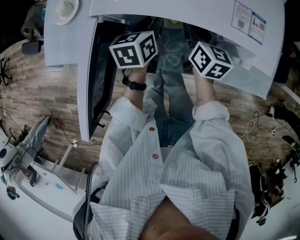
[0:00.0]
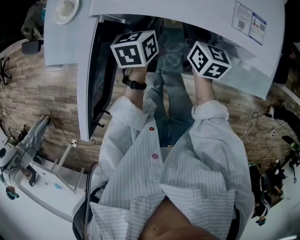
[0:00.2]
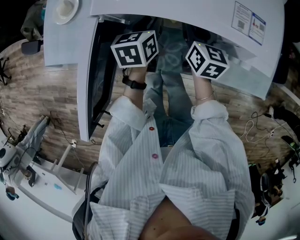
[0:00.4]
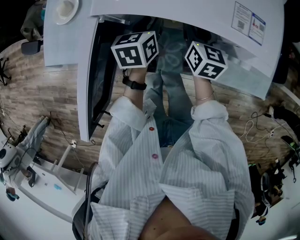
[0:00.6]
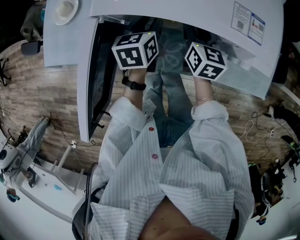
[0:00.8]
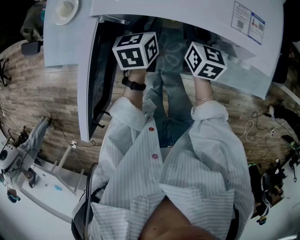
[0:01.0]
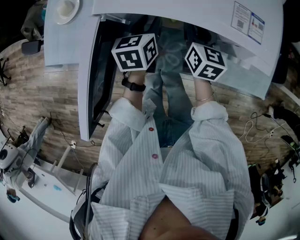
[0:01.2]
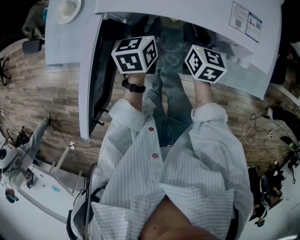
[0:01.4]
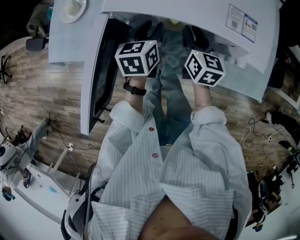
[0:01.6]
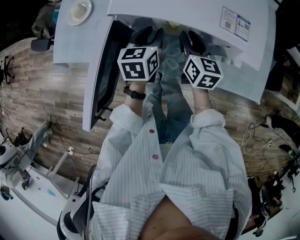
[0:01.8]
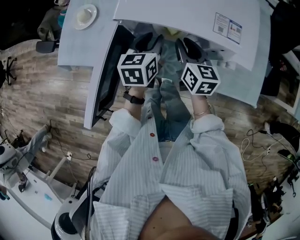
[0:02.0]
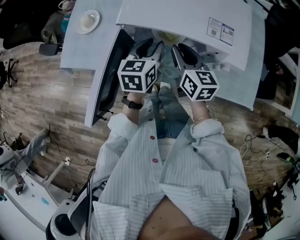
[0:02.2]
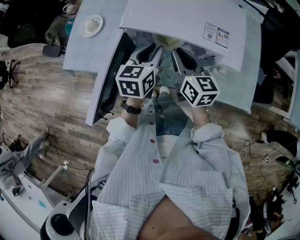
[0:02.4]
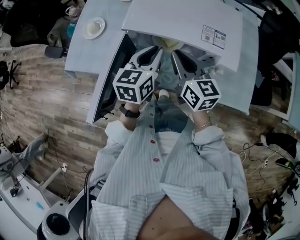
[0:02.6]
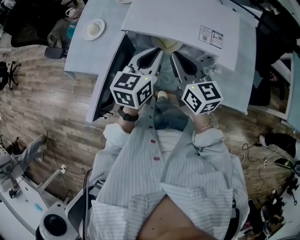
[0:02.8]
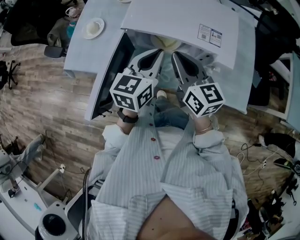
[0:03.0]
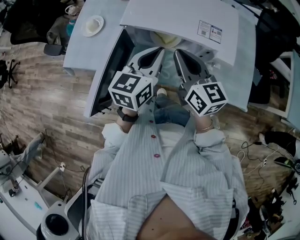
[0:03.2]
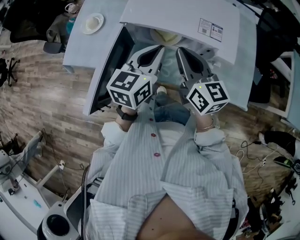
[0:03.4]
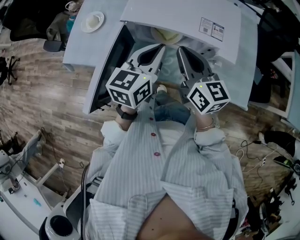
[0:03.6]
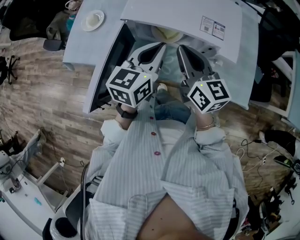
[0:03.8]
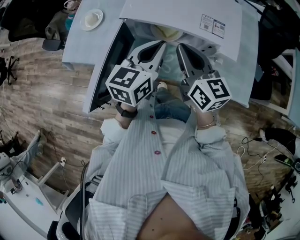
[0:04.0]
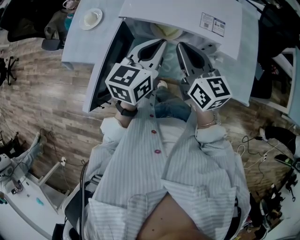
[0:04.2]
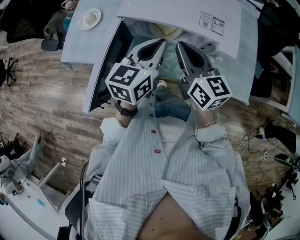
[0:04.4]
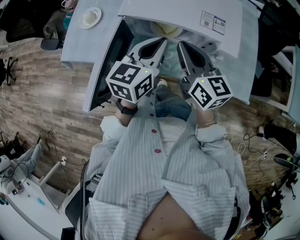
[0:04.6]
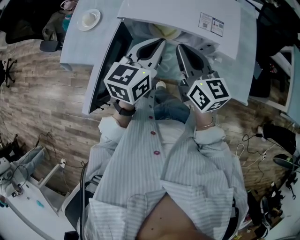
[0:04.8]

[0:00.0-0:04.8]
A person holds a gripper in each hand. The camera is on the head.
0:00.0 to 0:01.6: The grippers stay close to where they were, moving slightly.
0:01.6 to 0:03.2: Both grippers move upward and backward, some 20 cm. The left gripper rotates some 20 degrees, and closes. Meanwhile the right gripper changes its angle by approximately 30 degrees, and closes its fingers.
0:03.2 to 0:04.8: The two grippers keep their place.

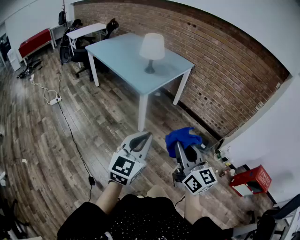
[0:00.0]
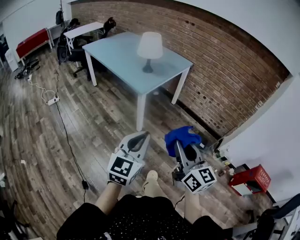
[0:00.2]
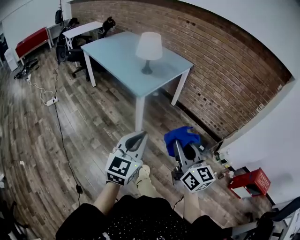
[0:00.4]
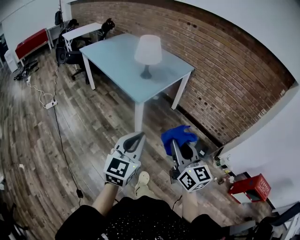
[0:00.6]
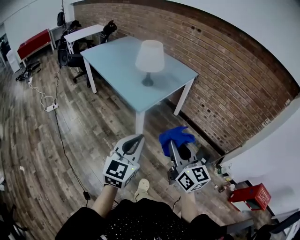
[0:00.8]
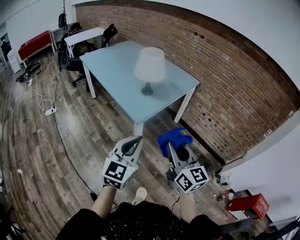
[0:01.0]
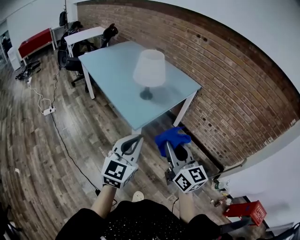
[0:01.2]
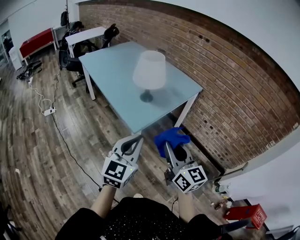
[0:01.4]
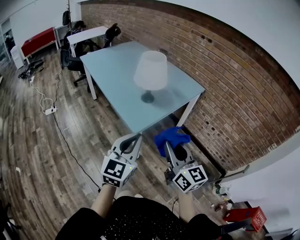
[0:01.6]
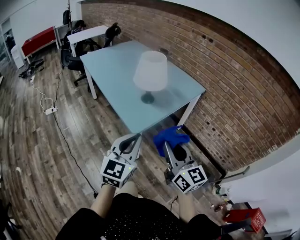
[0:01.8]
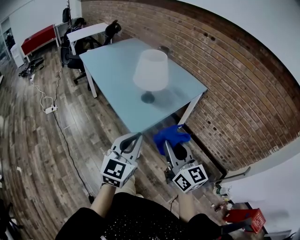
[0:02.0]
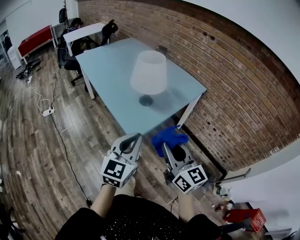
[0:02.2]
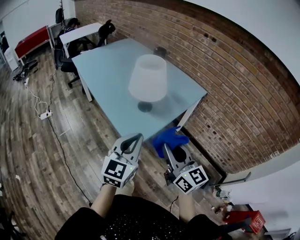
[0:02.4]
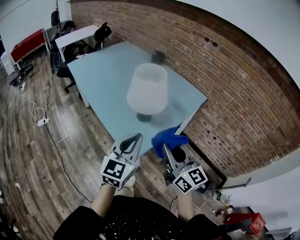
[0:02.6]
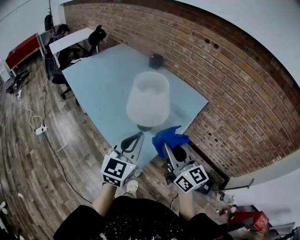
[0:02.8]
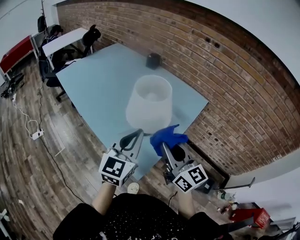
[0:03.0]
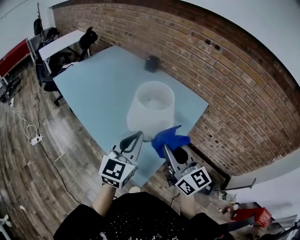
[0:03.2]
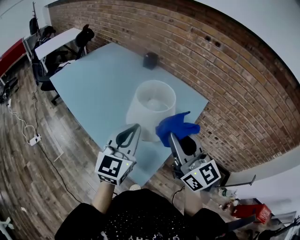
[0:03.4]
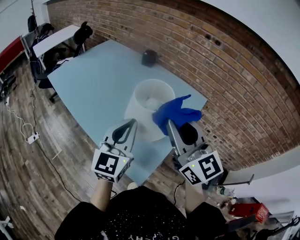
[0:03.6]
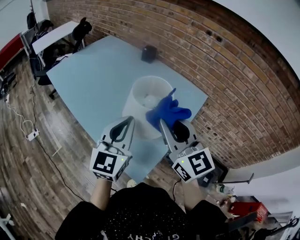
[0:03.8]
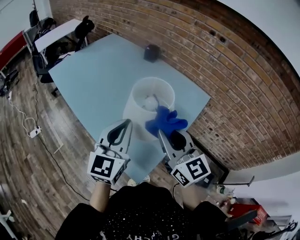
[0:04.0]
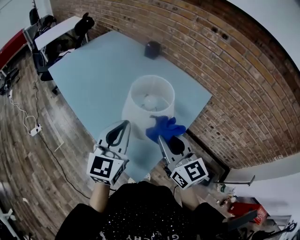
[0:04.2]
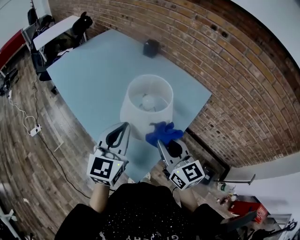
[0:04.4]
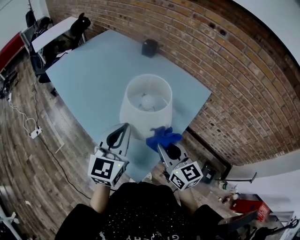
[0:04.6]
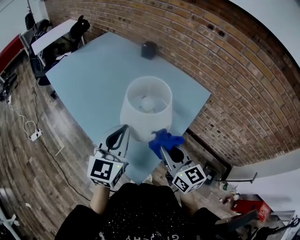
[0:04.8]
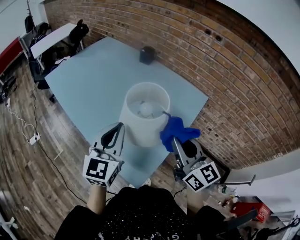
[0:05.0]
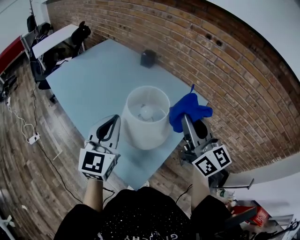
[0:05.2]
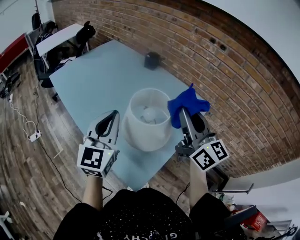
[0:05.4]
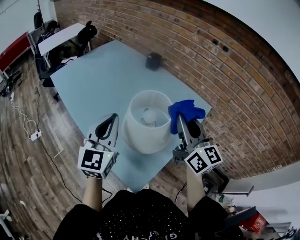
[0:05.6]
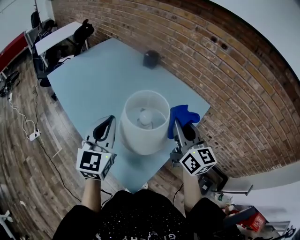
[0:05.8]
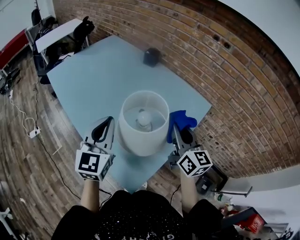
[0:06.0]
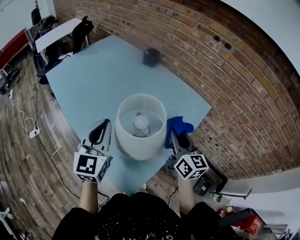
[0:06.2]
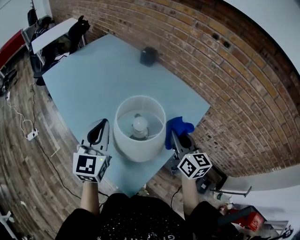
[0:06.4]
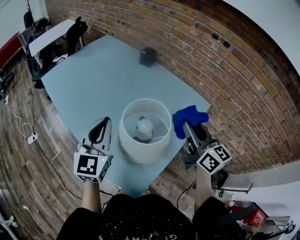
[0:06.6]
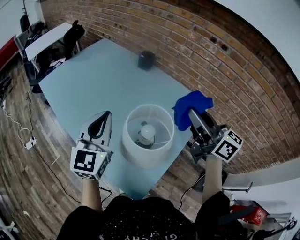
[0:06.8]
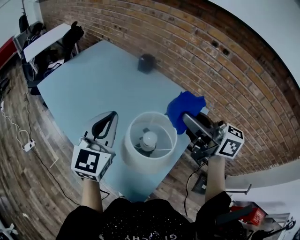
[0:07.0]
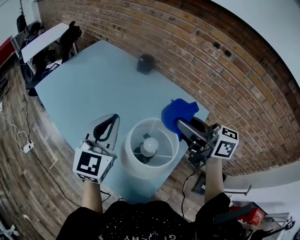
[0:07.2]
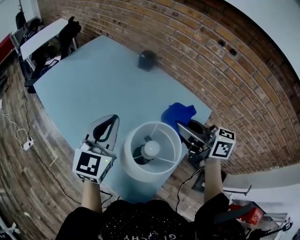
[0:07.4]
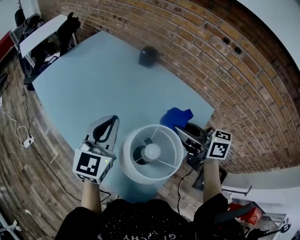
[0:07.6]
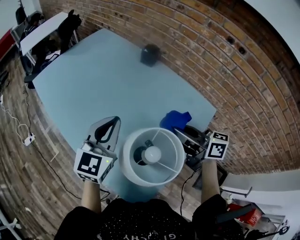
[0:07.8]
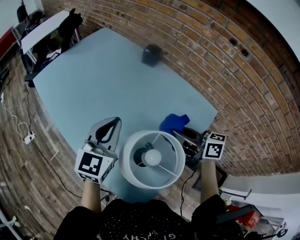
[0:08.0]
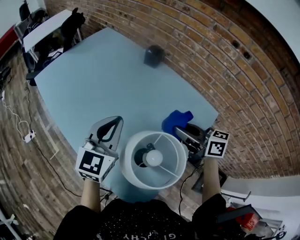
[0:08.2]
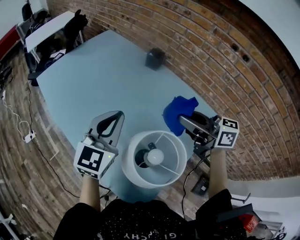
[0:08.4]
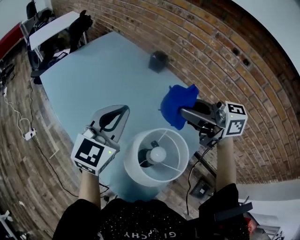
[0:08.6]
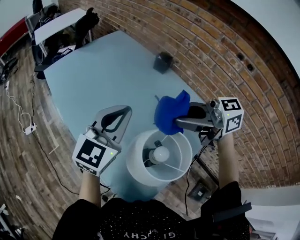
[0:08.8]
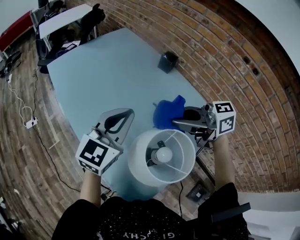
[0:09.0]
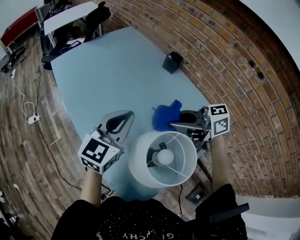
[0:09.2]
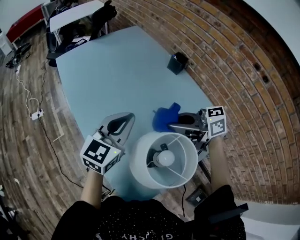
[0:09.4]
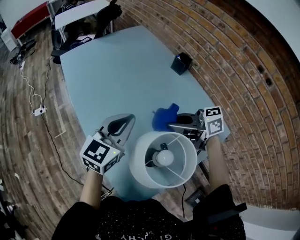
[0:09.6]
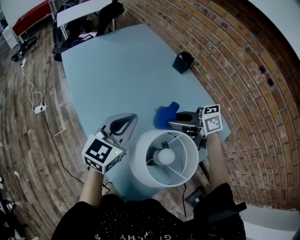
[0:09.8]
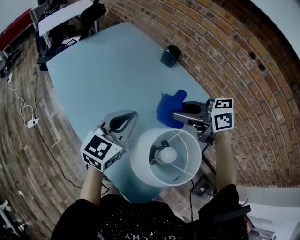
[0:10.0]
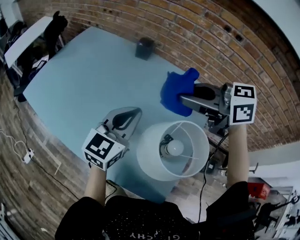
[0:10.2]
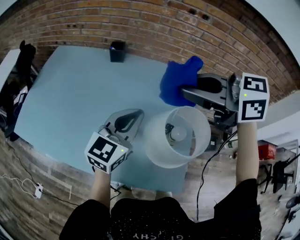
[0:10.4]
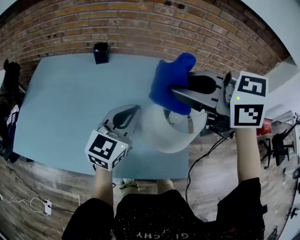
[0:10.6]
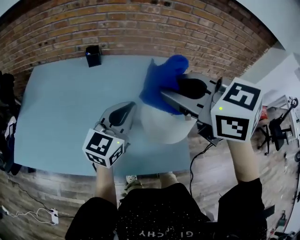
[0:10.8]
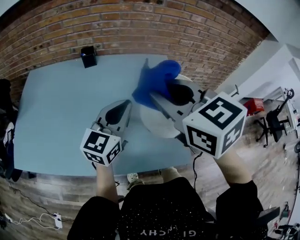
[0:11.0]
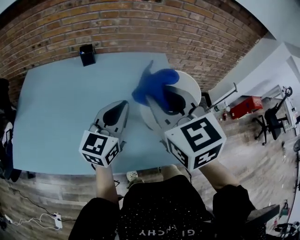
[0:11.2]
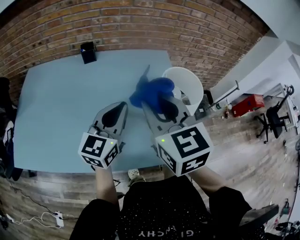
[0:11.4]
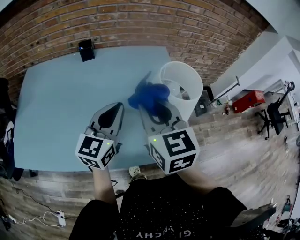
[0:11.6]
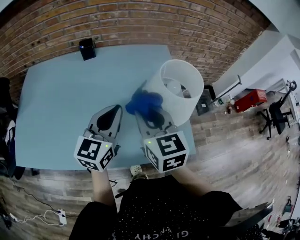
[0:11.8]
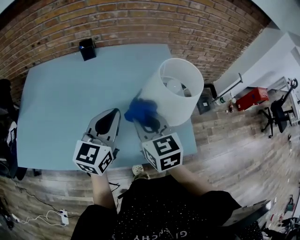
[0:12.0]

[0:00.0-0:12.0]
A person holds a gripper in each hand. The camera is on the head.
0:00.0 to 0:01.6: The grippers both shift forward by roughly 35 cm.
0:01.6 to 0:03.0: The grippers both shift forward by approximately 30 cm.
0:03.0 to 0:04.4: Both grippers move forward, roughly 5 cm. The right gripper moves about 10 cm upward and comes back.
0:04.4 to 0:06.0: The right gripper heads forward and to the right, covering roughly 15 cm, and goes upward and returns, some 15 cm each way. Meanwhile the left gripper goes some 5 cm forward.
0:06.0 to 0:07.6: The right gripper moves up and down over roughly 20 cm, changing direction 2 times, and changes its angle by approximately 40 degrees; the left gripper travels forward by about 15 cm.
0:07.6 to 0:09.0: The right gripper moves up and down over roughly 15 cm, changing direction 2 times, and changes its angle by approximately 40 degrees.
0:09.0 to 0:10.4: The right gripper travels upward by about 10 cm, and rotates about 50 degrees, while the left gripper turns by roughly 40 degrees.
0:10.4 to 0:12.0: The right gripper moves downward, about 20 cm, and changes its angle by approximately 60 degrees; the left gripper changes place by roughly 10 cm.

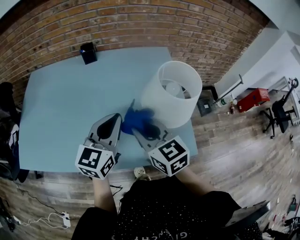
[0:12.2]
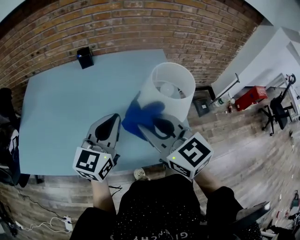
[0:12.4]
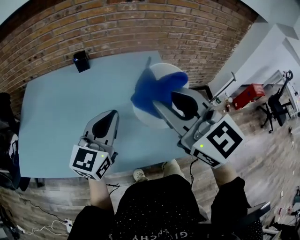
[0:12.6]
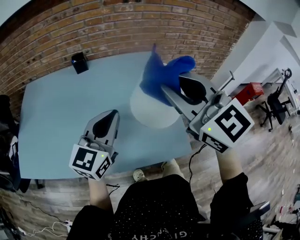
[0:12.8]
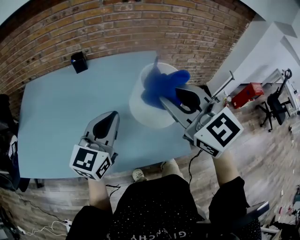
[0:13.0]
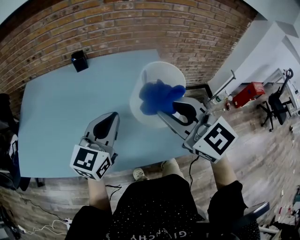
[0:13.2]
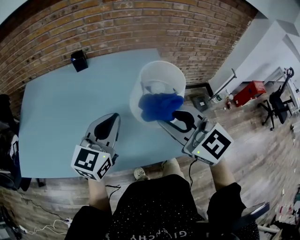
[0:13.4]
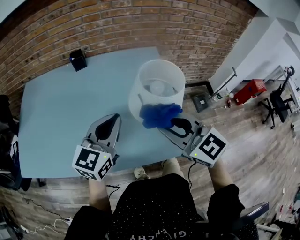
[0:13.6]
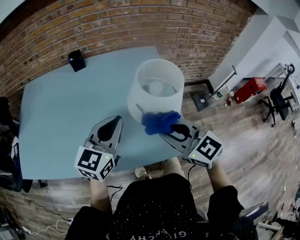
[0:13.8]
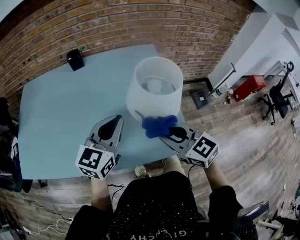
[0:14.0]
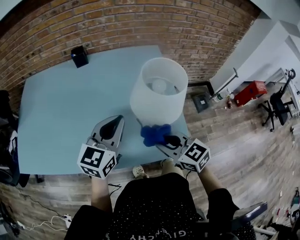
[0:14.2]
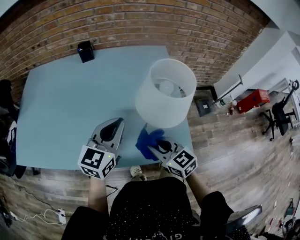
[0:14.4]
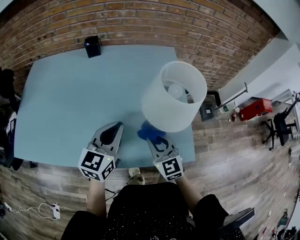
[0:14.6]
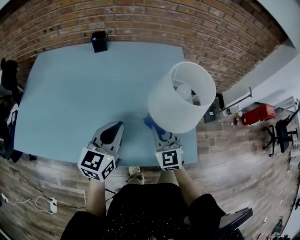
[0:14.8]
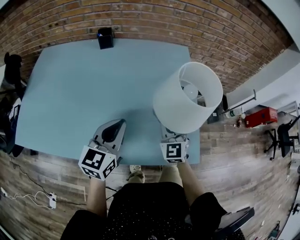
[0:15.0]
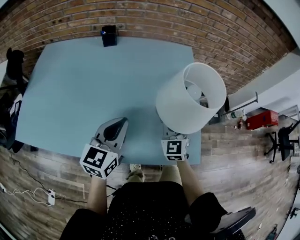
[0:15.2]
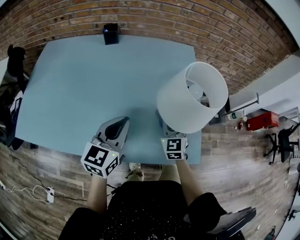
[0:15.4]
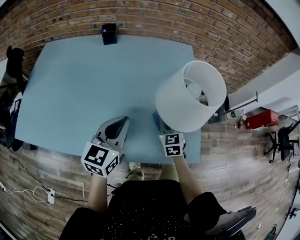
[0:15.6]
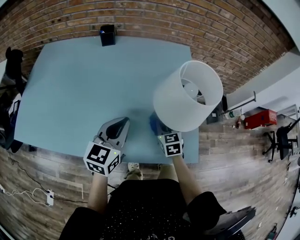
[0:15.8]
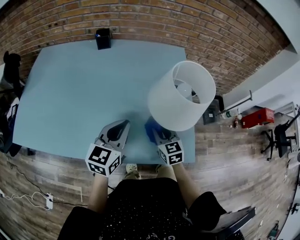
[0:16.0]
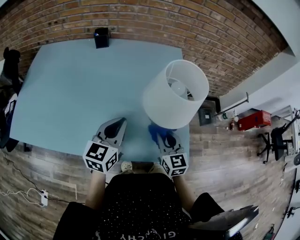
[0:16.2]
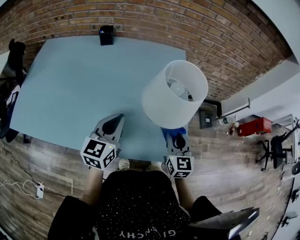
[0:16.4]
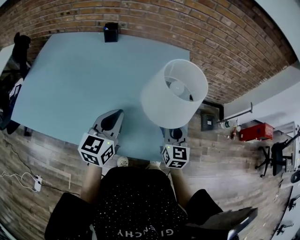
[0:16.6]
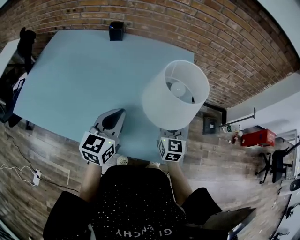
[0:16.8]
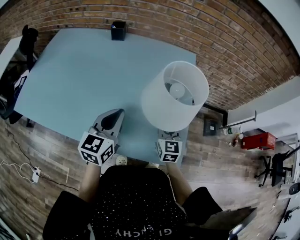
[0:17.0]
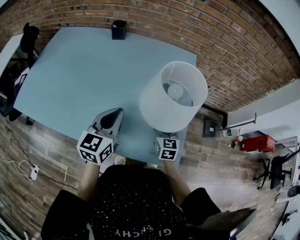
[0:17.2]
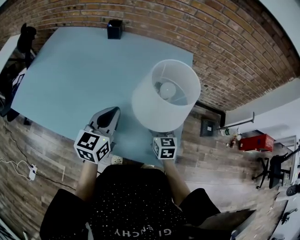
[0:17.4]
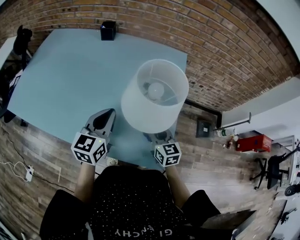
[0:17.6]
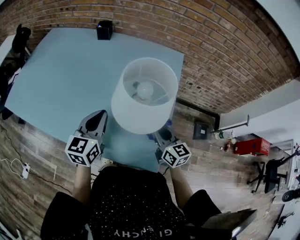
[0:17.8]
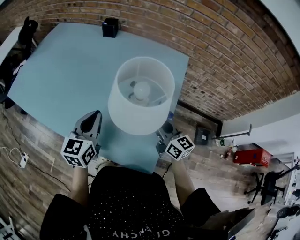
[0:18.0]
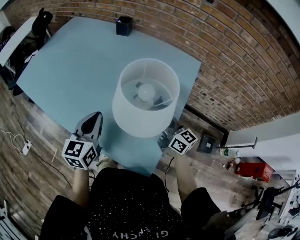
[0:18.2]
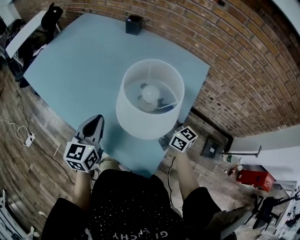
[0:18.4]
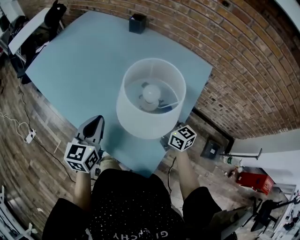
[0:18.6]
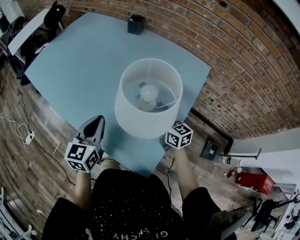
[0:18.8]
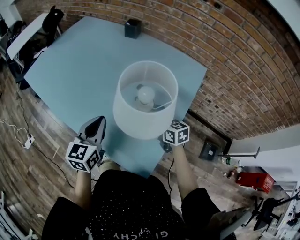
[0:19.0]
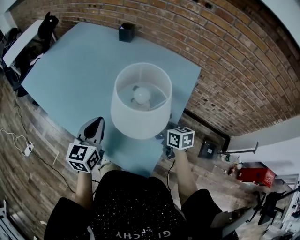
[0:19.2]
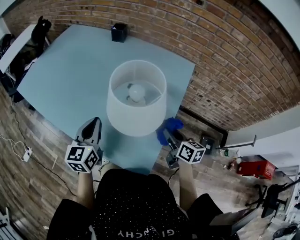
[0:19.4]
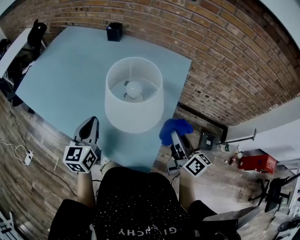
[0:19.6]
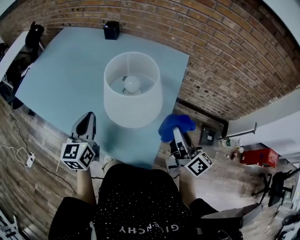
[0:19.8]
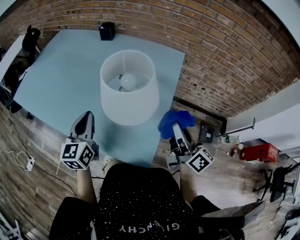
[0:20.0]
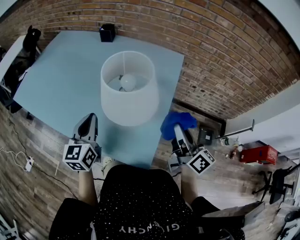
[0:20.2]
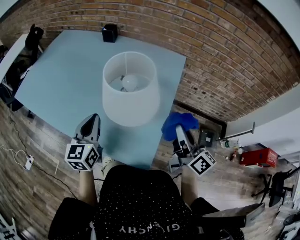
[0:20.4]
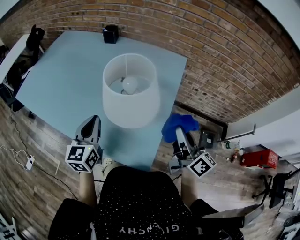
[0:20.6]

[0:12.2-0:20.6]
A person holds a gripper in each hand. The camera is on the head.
0:12.2 to 0:13.6: The left gripper ends up approximately 5 cm from where it was. Meanwhile the right gripper moves to the right, some 10 cm, travels upward and back again, about 20 cm each way, and changes its angle by about 20 degrees.
0:13.6 to 0:15.0: The left gripper shifts roughly 10 cm downward and to the left; the right gripper travels downward and forward by some 20 cm, and turns by about 30 degrees.
0:15.0 to 0:16.4: The right gripper shifts approximately 10 cm to the right and backward, reaches roughly 10 cm downward, then returns, and changes its angle by approximately 20 degrees.
0:16.4 to 0:17.8: The left gripper heads to the right, covering roughly 5 cm; the right gripper travels forward and to the right by roughly 10 cm, and changes its angle by about 40 degrees.
0:17.8 to 0:19.2: The right gripper moves forward and downward, some 10 cm, and rotates roughly 30 degrees.
0:19.2 to 0:20.6: The right gripper shifts approximately 20 cm upward, backward and to the right, and tips its fingers upward by approximately 40 degrees.
